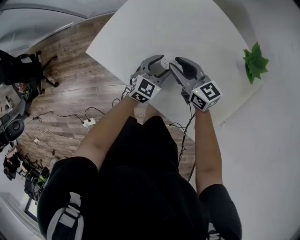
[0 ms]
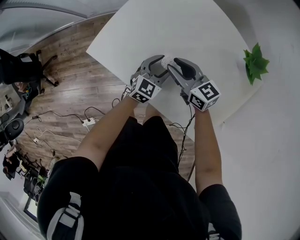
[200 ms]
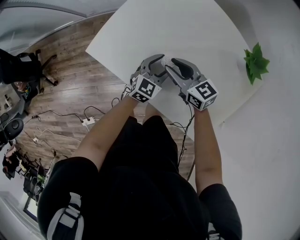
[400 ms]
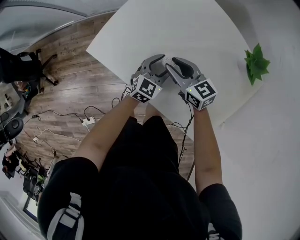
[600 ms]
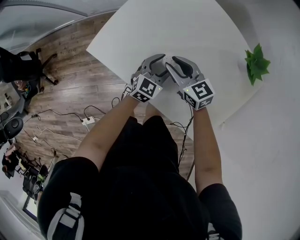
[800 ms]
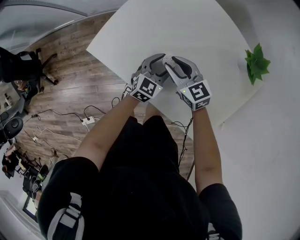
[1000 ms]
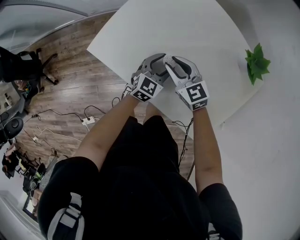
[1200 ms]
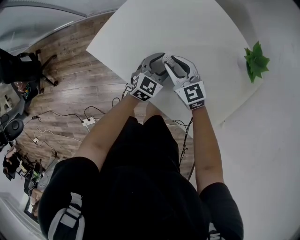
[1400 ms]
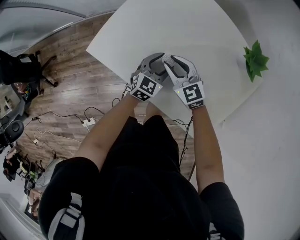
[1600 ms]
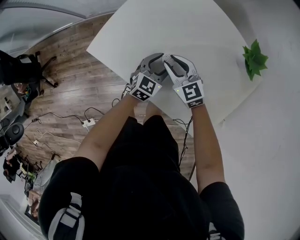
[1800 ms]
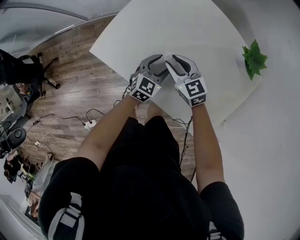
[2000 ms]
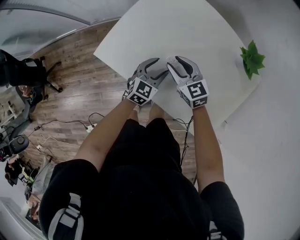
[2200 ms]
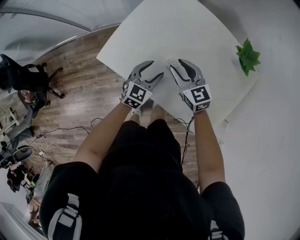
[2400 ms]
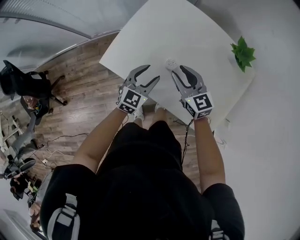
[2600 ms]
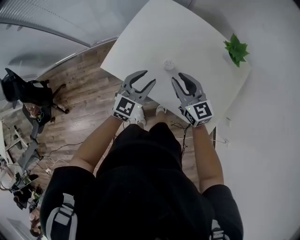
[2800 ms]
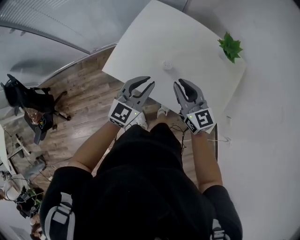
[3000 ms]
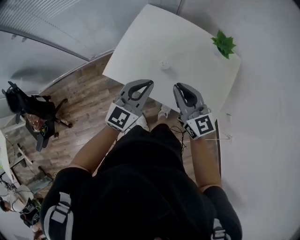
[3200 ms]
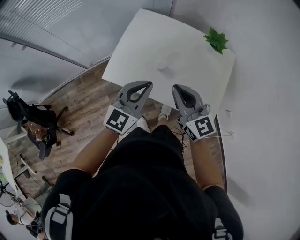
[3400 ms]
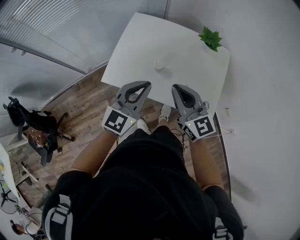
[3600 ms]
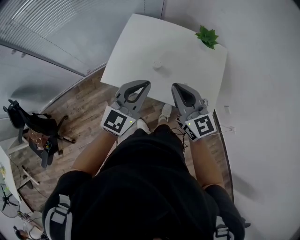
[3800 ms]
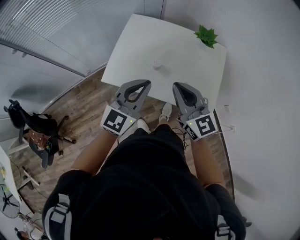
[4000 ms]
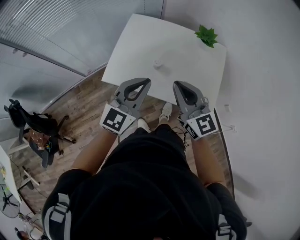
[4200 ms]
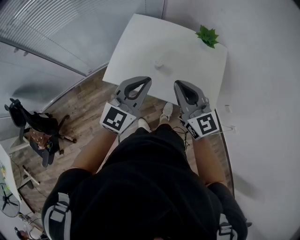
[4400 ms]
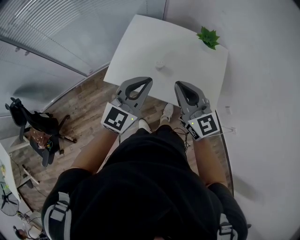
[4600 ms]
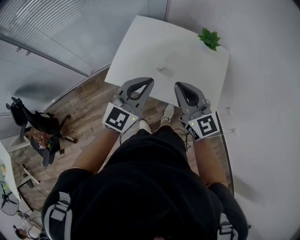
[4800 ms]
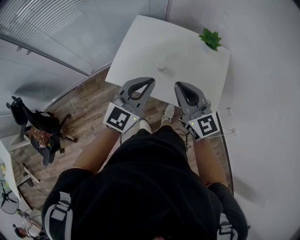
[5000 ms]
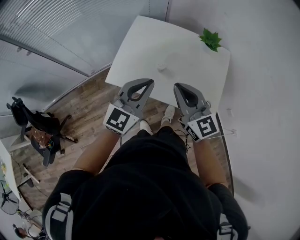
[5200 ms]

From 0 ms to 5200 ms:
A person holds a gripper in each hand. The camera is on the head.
From 0 ms to 1800 ms: The right gripper swivels approximately 30 degrees.
From 1800 ms to 3400 ms: The grippers both shift upward and backward by some 35 cm. The left gripper rotates roughly 30 degrees, and closes; the right gripper changes its angle by roughly 30 degrees.
From 3400 ms to 5200 ms: The left gripper shifts some 5 cm upward. Meanwhile the right gripper ends up about 5 cm from where it was.

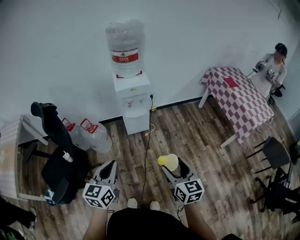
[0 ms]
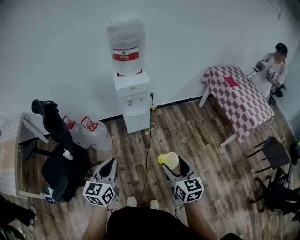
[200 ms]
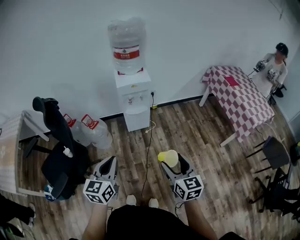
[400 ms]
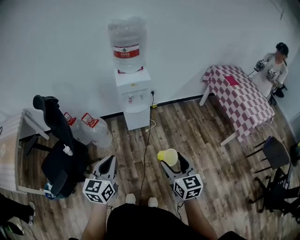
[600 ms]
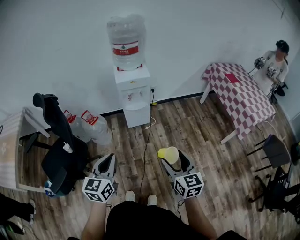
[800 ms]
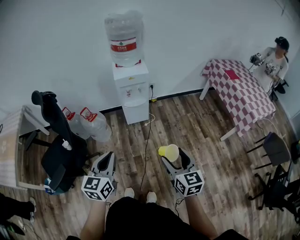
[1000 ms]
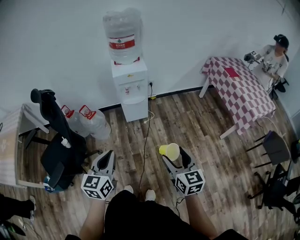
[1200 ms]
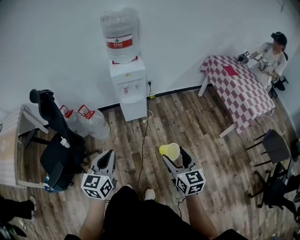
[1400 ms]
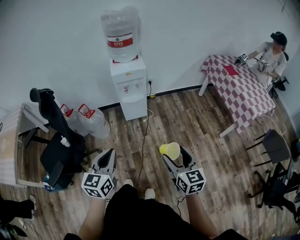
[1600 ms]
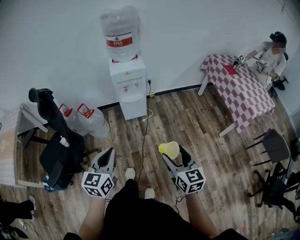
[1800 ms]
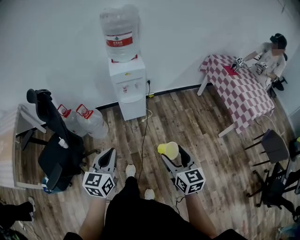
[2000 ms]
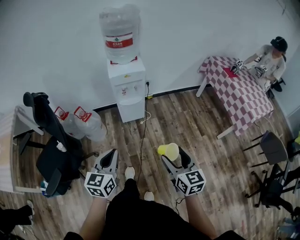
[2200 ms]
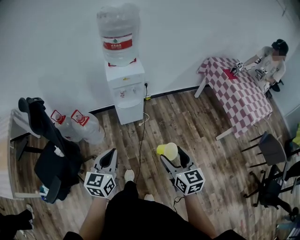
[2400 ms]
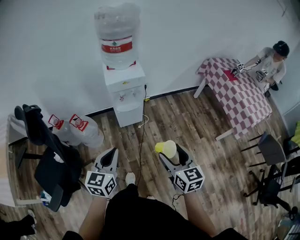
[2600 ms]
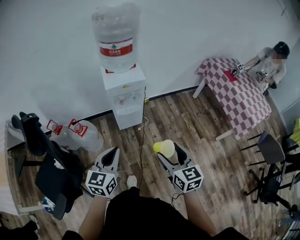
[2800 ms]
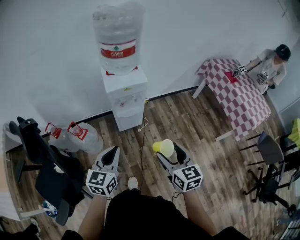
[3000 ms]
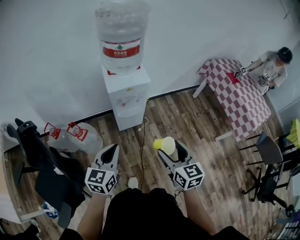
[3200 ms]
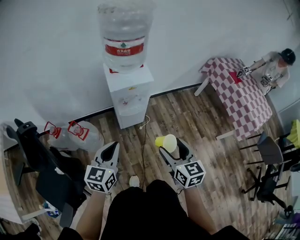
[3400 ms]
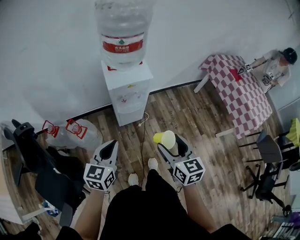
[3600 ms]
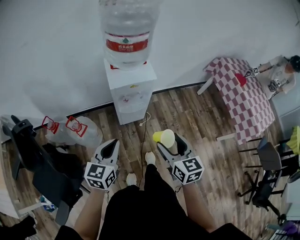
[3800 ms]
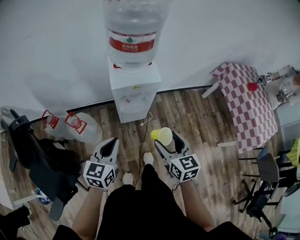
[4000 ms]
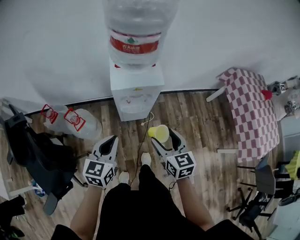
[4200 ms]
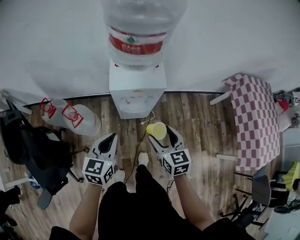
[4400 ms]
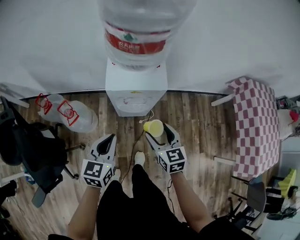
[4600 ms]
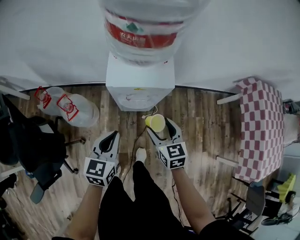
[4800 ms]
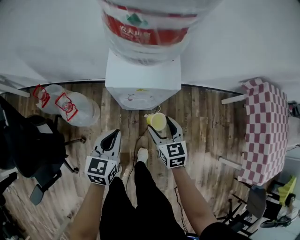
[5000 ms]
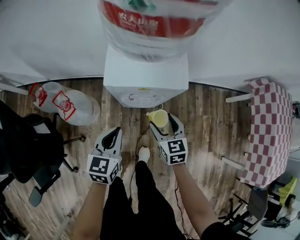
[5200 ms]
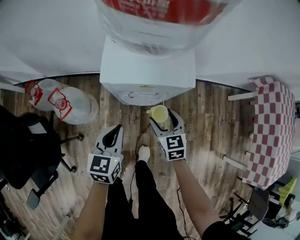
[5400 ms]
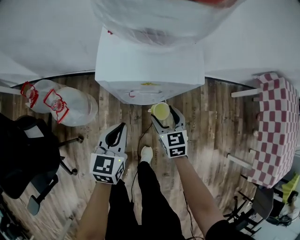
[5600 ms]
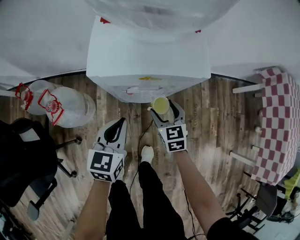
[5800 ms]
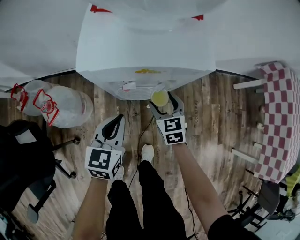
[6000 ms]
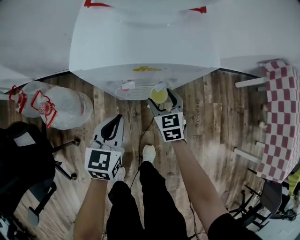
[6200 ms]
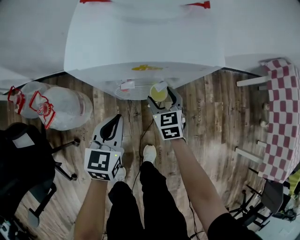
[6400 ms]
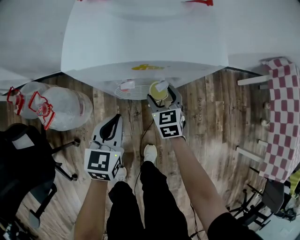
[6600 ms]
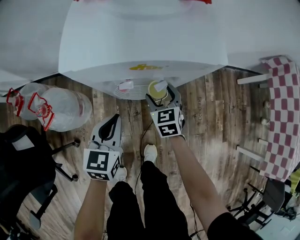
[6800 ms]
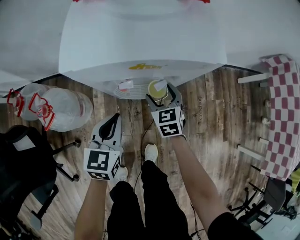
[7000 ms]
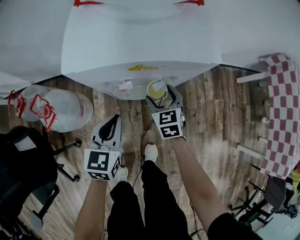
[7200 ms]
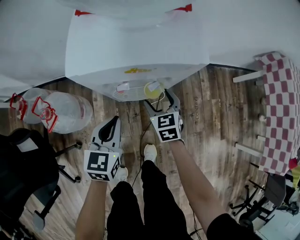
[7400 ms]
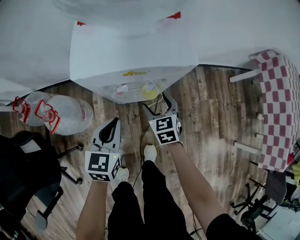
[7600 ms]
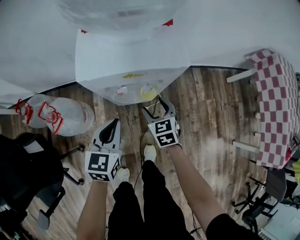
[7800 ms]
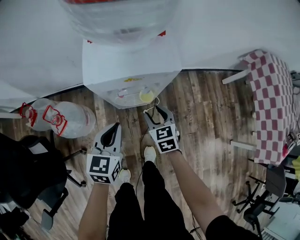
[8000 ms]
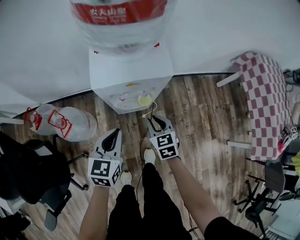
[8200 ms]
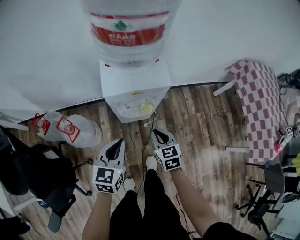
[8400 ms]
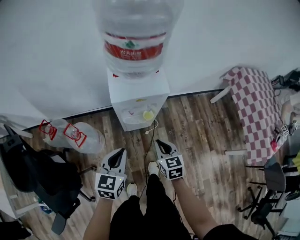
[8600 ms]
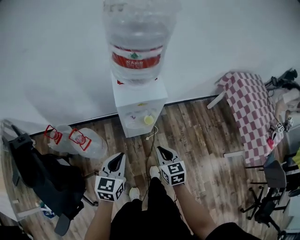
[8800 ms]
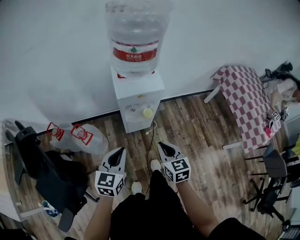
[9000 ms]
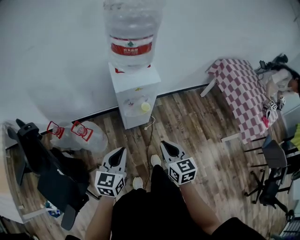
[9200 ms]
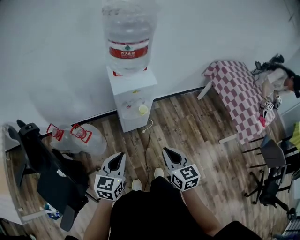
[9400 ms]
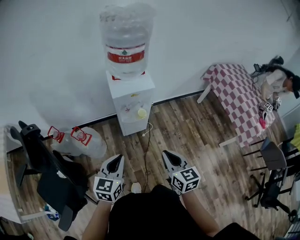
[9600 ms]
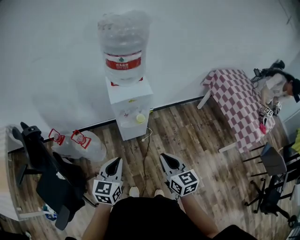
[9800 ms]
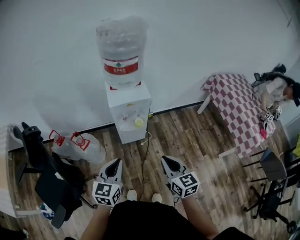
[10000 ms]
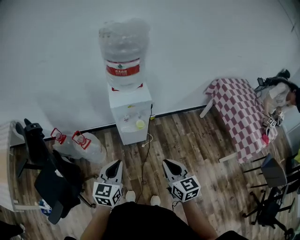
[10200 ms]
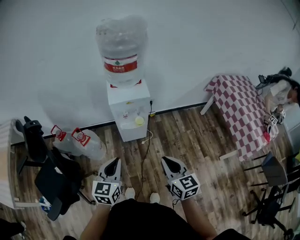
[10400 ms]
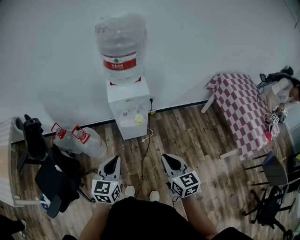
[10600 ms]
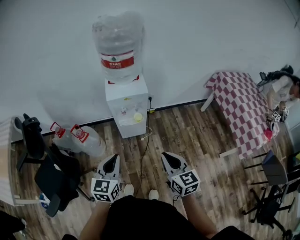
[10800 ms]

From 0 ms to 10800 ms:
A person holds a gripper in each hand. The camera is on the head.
From 0 ms to 1600 ms: The grippers both shift to the right by approximately 5 cm.
From 1600 ms to 3000 ms: The left gripper moves forward, approximately 25 cm. The right gripper moves forward and to the left, roughly 25 cm.
From 3000 ms to 4600 ms: Both grippers travel together forward and downward, approximately 25 cm.
From 4600 ms to 6200 ms: The right gripper travels downward and forward by about 35 cm; the left gripper moves downward, about 25 cm.
From 6200 ms to 7800 ms: Both grippers travel together upward, about 5 cm.
From 7800 ms to 9200 ms: The grippers both shift upward and backward by some 40 cm. The right gripper swivels some 30 degrees, and closes.
From 9200 ms to 10800 ms: The right gripper goes about 15 cm to the right, backward and upward; the left gripper shifts about 10 cm to the right and backward.

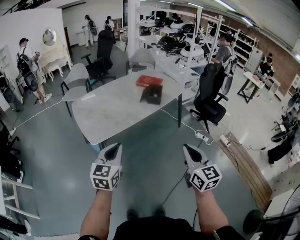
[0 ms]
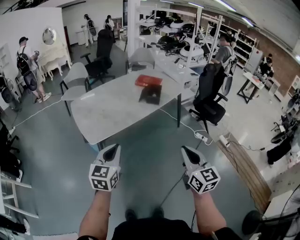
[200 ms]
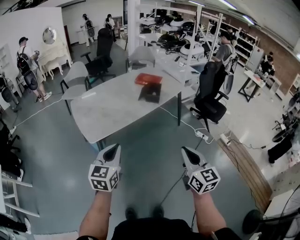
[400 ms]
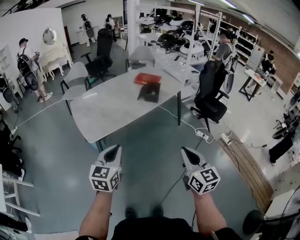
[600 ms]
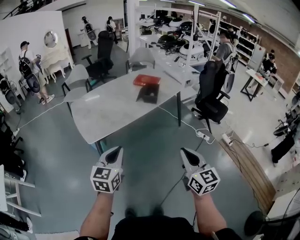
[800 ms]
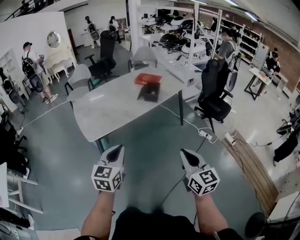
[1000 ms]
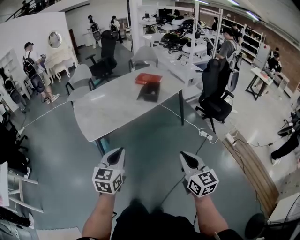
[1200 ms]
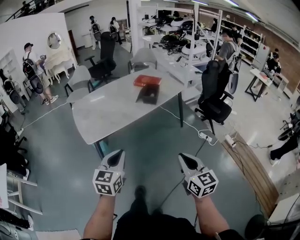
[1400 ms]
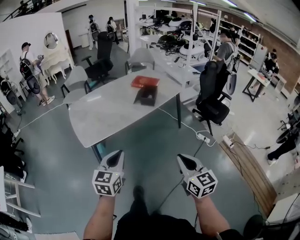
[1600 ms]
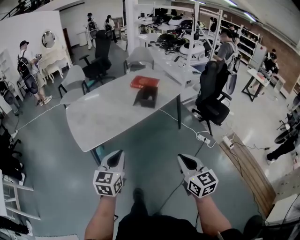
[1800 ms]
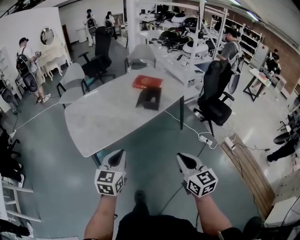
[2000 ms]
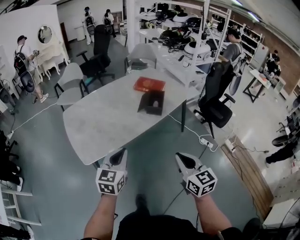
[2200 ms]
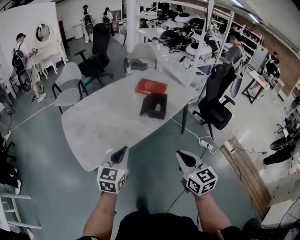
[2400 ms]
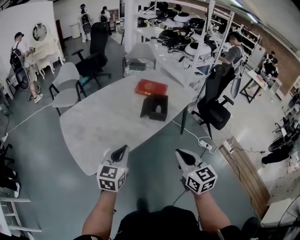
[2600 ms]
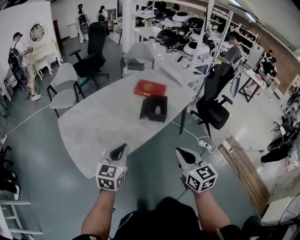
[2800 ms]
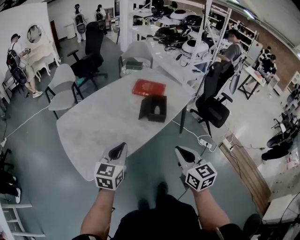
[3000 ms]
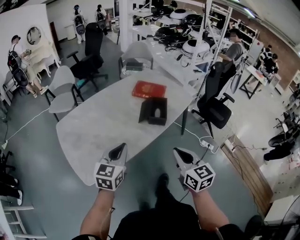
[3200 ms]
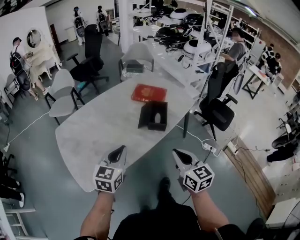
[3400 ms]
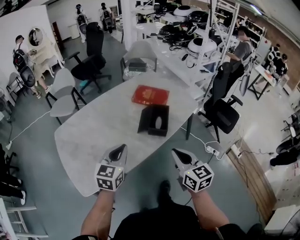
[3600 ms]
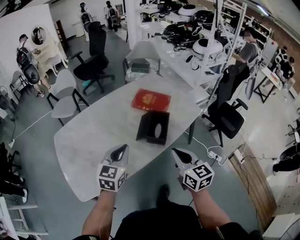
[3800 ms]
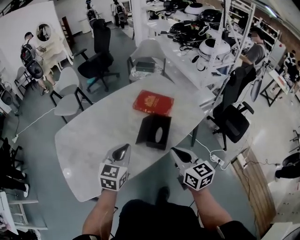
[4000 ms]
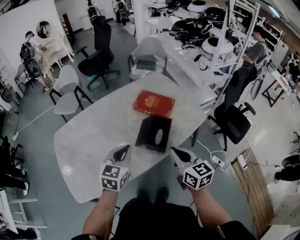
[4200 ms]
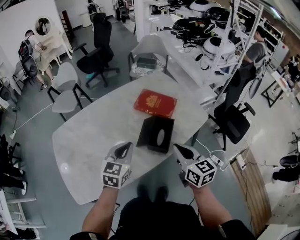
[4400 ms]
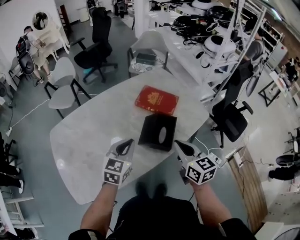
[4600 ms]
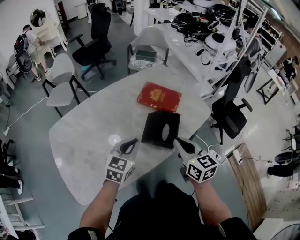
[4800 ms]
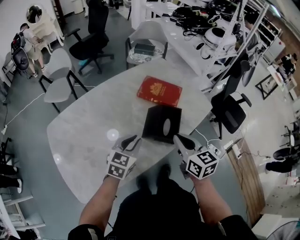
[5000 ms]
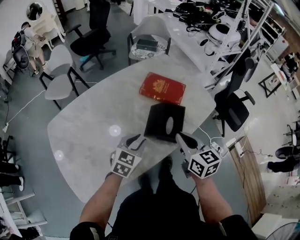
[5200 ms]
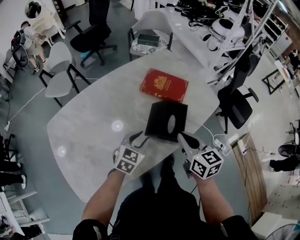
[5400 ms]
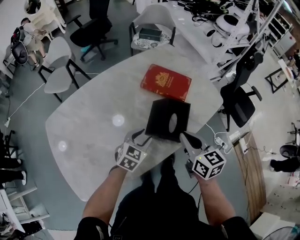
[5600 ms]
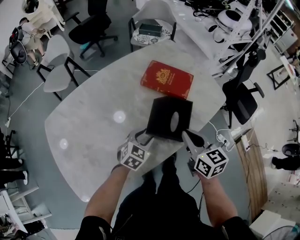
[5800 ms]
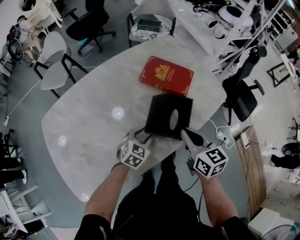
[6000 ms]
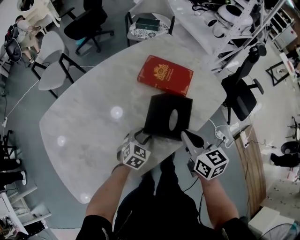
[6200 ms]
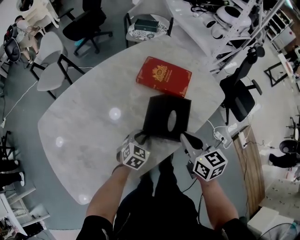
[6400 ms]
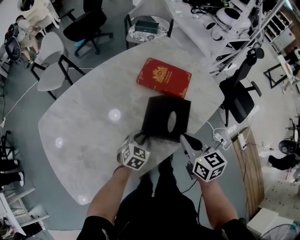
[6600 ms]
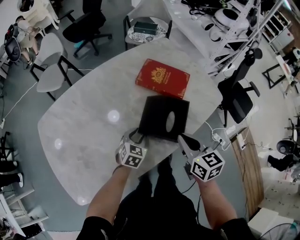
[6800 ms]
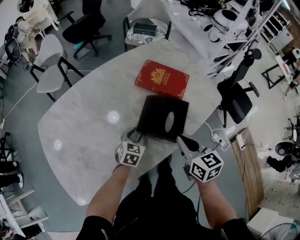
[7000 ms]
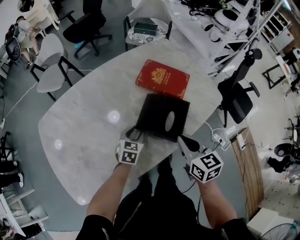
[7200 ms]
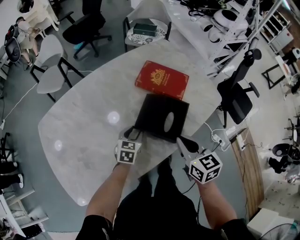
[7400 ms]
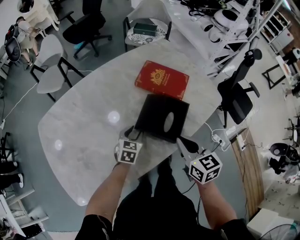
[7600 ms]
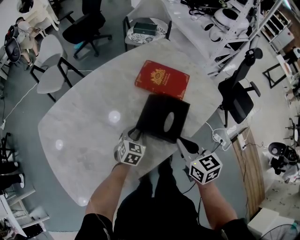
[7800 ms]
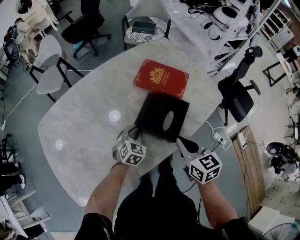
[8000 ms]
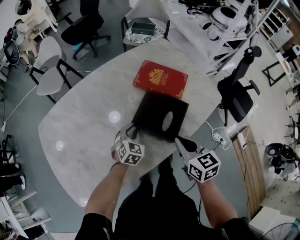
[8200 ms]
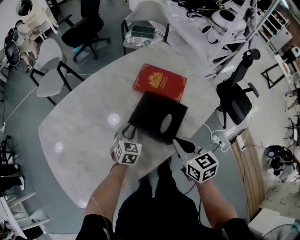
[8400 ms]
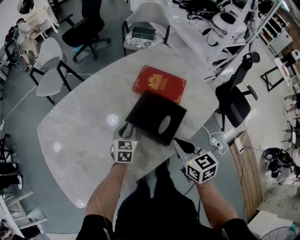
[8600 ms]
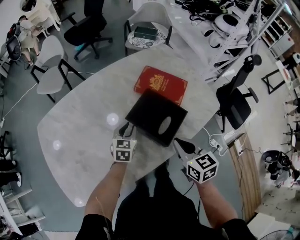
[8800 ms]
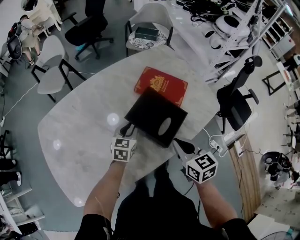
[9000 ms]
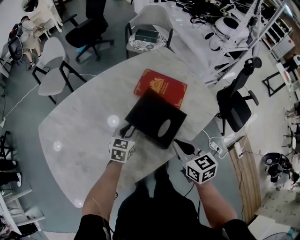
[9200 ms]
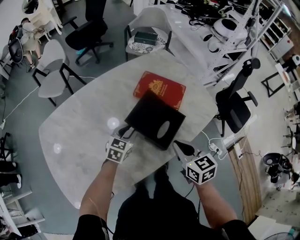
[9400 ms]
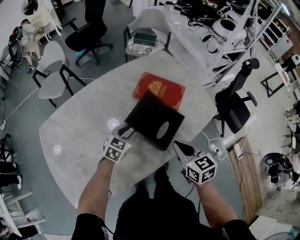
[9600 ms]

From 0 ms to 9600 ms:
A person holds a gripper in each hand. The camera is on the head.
From 0 ms to 1600 ms: The right gripper shifts some 10 cm to the right and downward. The left gripper heads to the right, covering some 10 cm.
From 1600 ms to 3200 ms: Both grippers travel together forward, approximately 35 cm.
From 3200 ms to 4800 ms: Both grippers move forward, approximately 30 cm.
From 4800 ms to 6400 ms: The right gripper is displaced downward and forward by approximately 15 cm, while the left gripper is displaced downward by roughly 25 cm, swivels about 20 degrees, and opens, then closes once more.
From 6400 ms to 8000 ms: The left gripper opens and closes again.
From 8000 ms to 9600 ms: The left gripper heads upward, covering approximately 5 cm.
